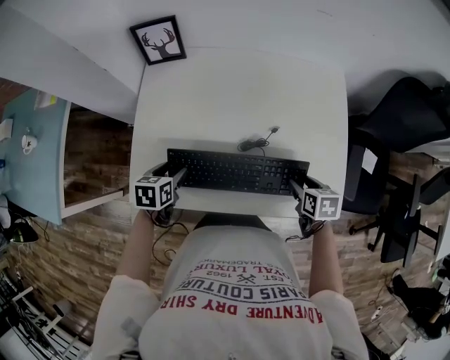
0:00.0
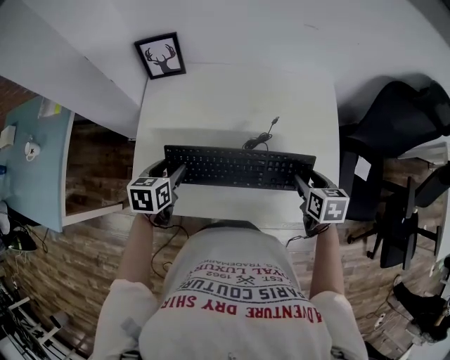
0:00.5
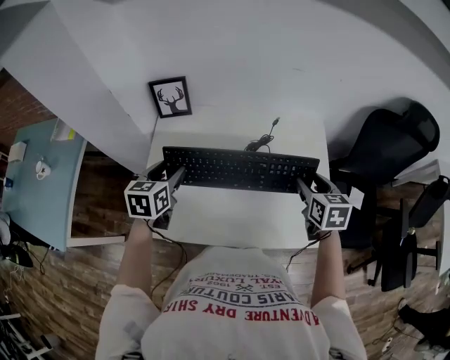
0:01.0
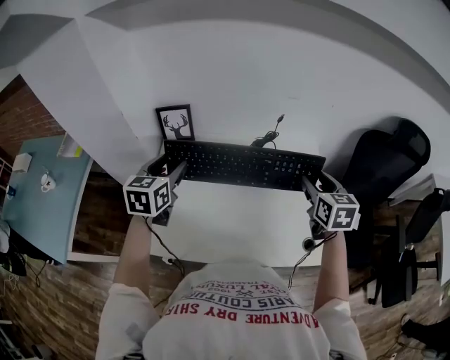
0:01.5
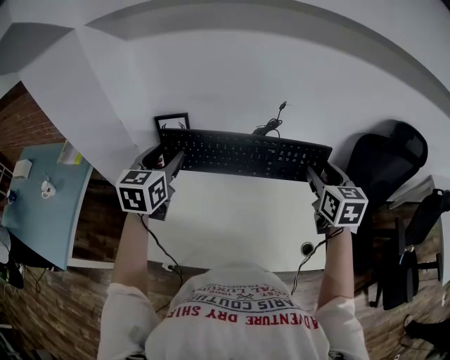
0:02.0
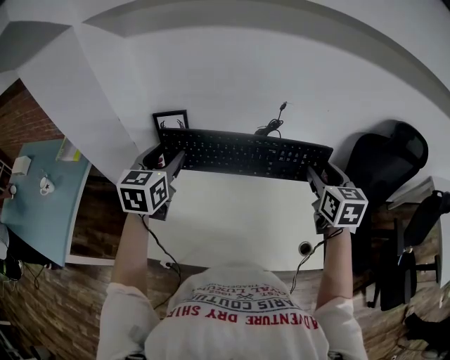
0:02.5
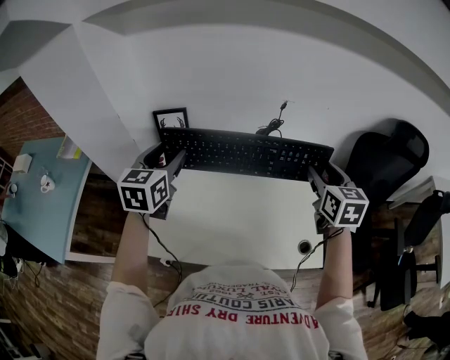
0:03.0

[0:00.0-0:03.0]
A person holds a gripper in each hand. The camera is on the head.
0:00.0 to 0:01.5: Both grippers travel together upward and forward, roughly 30 cm. The left gripper points its fingers roughly 30 degrees further upward; the right gripper tips its fingers upward by about 30 degrees.
0:01.5 to 0:03.0: Both grippers move upward, approximately 5 cm.

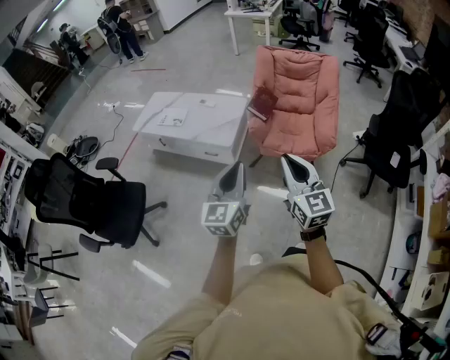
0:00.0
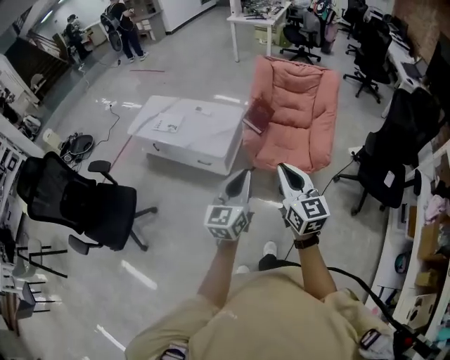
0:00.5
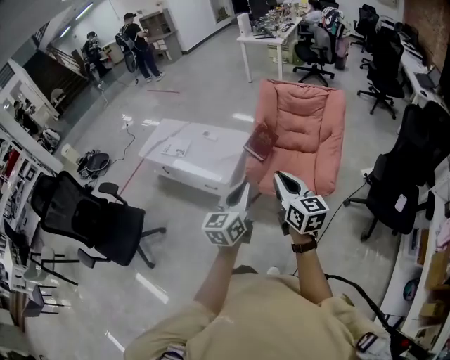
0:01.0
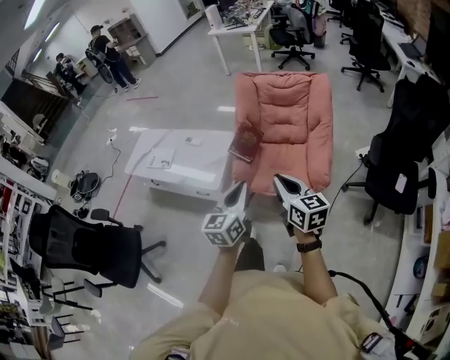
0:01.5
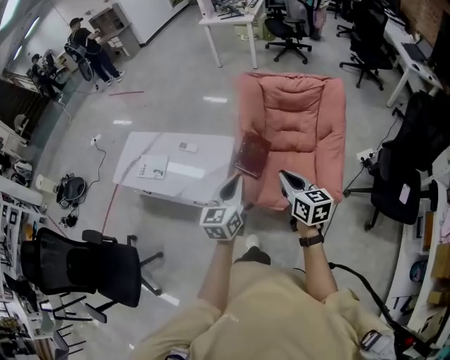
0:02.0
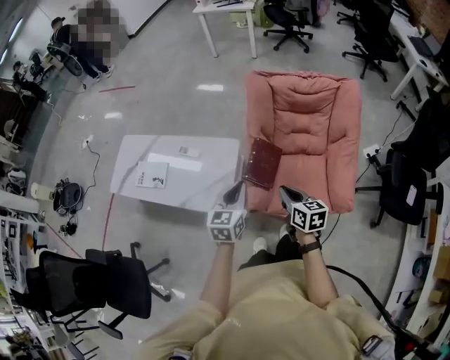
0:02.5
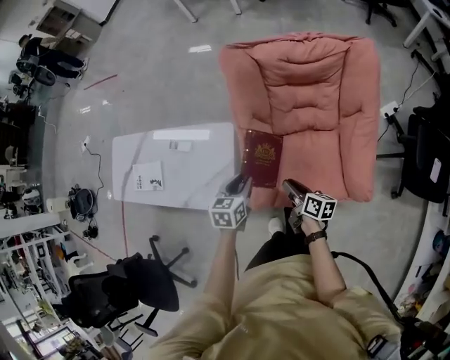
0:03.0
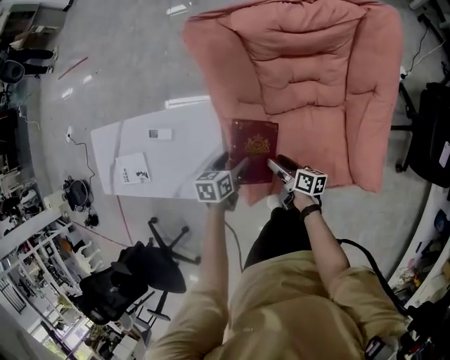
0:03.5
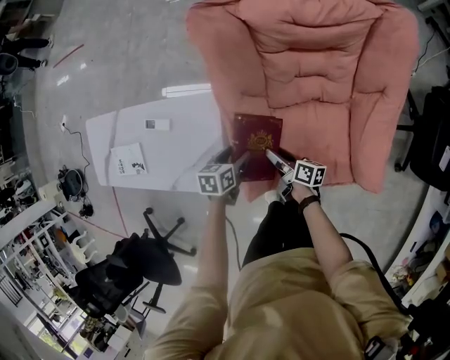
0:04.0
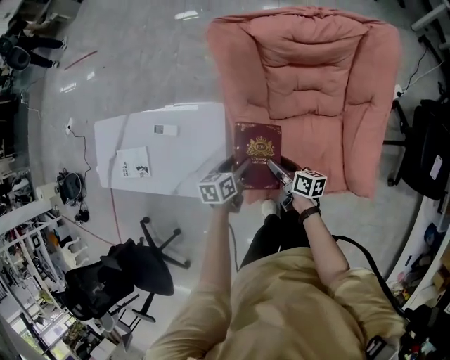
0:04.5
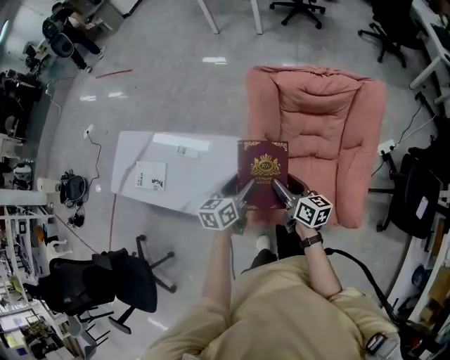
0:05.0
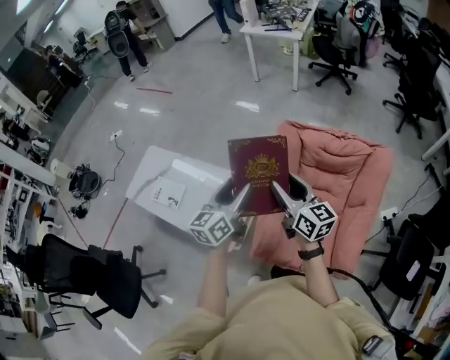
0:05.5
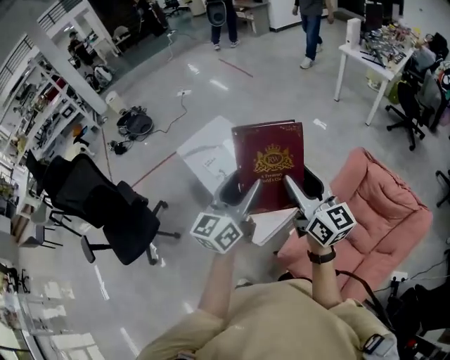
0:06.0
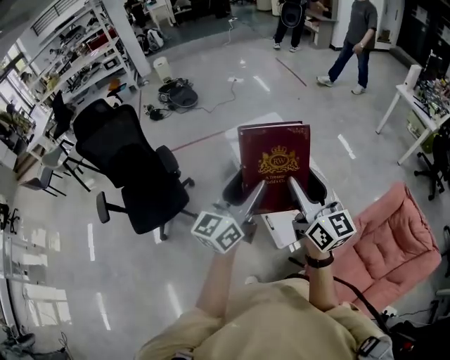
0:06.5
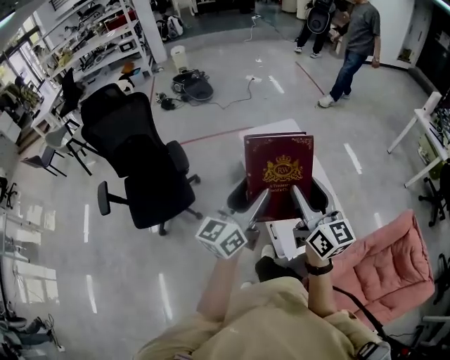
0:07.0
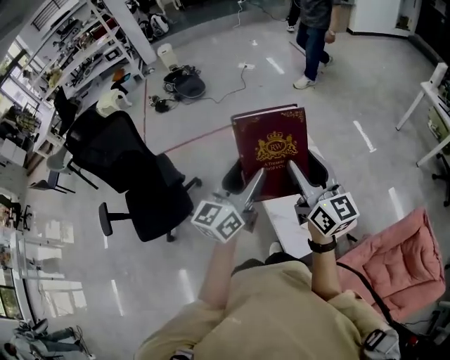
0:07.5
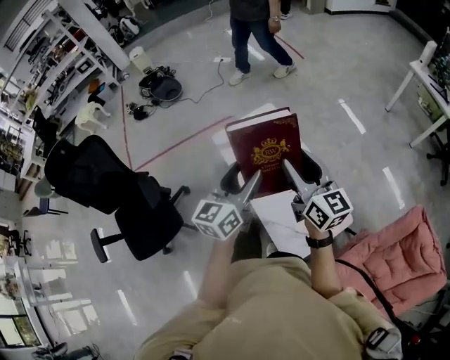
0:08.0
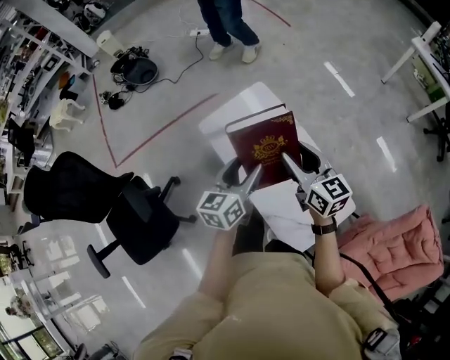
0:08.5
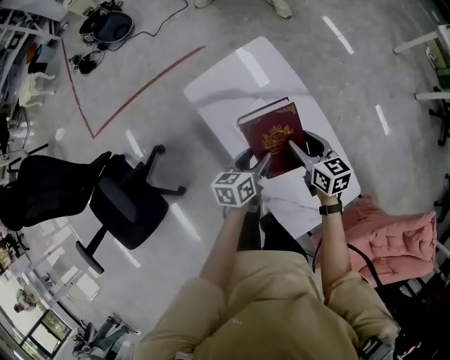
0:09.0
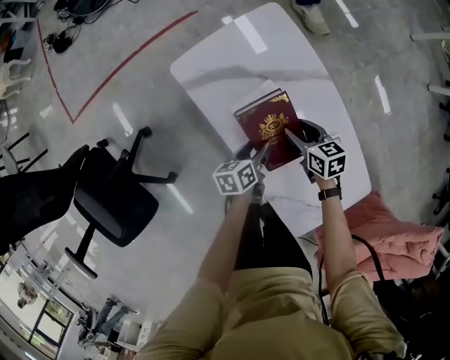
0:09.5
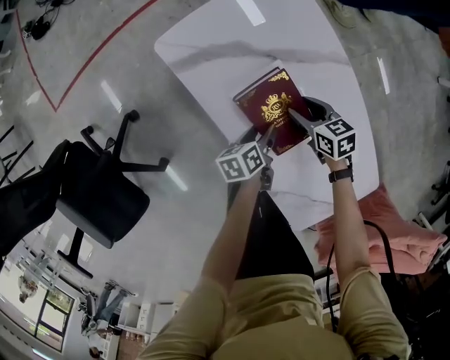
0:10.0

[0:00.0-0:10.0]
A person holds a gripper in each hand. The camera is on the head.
0:00.0 to 0:02.0: The two grippers travel together, forward, some 50 cm. The right gripper changes its angle by some 30 degrees.
0:02.0 to 0:04.0: Both grippers travel together downward and forward, about 50 cm. The left gripper angles its fingers downward, by roughly 40 degrees, and opens its fingers. Meanwhile the right gripper rotates around the line of its fingers by roughly 60 degrees, clockwise from behind, and opens up.
0:04.0 to 0:06.0: Both grippers travel together upward, some 60 cm. The right gripper rolls counterclockwise, seen from behind, by some 60 degrees. The left gripper points its fingers about 60 degrees further upward.
0:06.0 to 0:08.0: Both grippers are carried forward and to the left, some 40 cm.
0:08.0 to 0:10.0: The left gripper moves downward, about 70 cm, and points its fingers about 40 degrees further downward. The right gripper moves downward and forward, about 70 cm, and points its fingers about 50 degrees further downward.

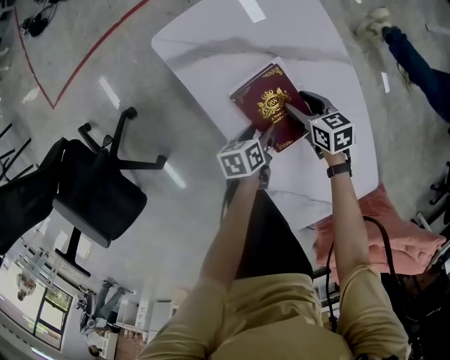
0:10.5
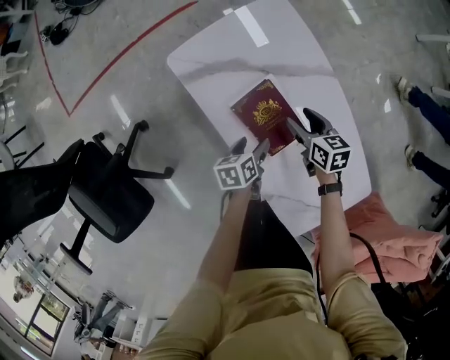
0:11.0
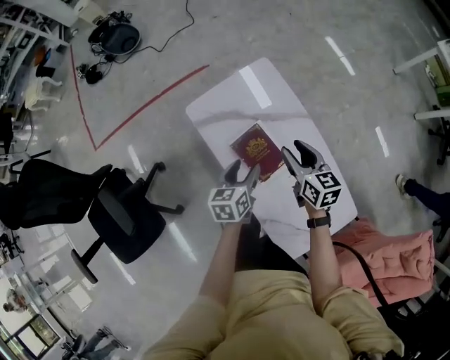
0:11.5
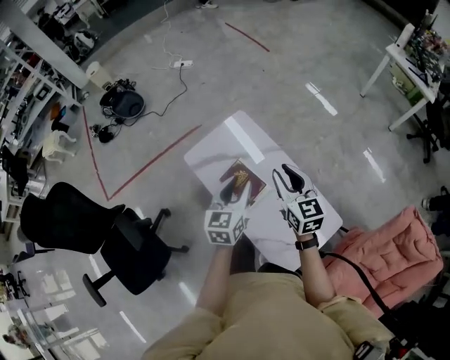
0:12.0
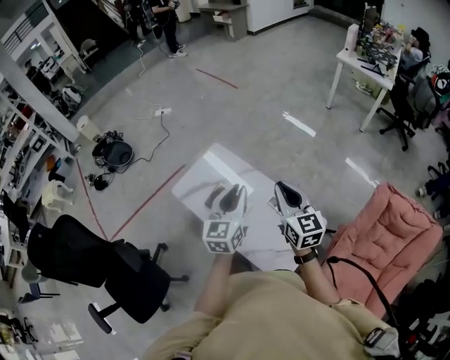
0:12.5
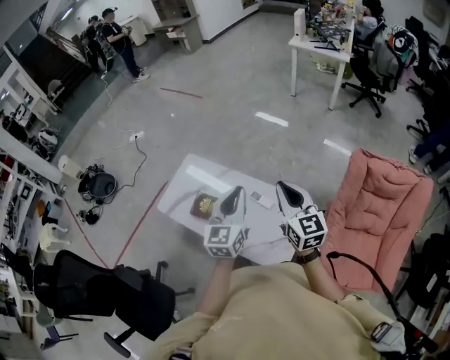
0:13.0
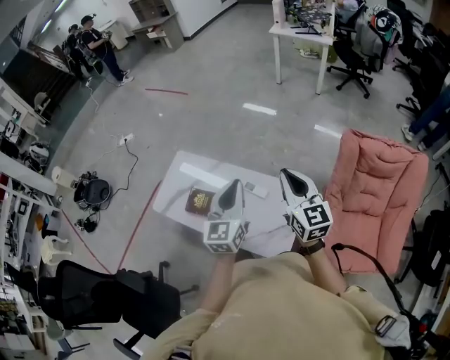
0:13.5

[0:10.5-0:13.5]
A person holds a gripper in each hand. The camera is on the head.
0:10.5 to 0:12.0: Both grippers travel together upward, approximately 50 cm. The left gripper rolls clockwise, seen from behind, by some 50 degrees, and closes. The right gripper angles its fingers upward, by approximately 40 degrees, and closes its fingers.
0:12.0 to 0:13.5: The left gripper moves some 30 cm, swivels approximately 30 degrees, and closes up; the right gripper ends up about 35 cm from where it was, swivels some 30 degrees, and closes up.

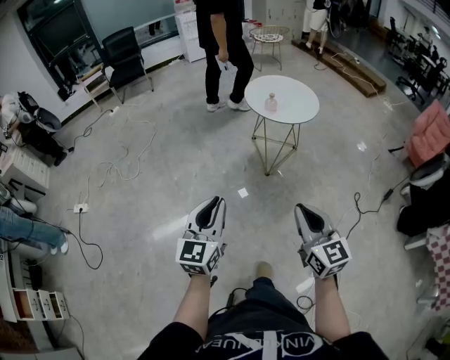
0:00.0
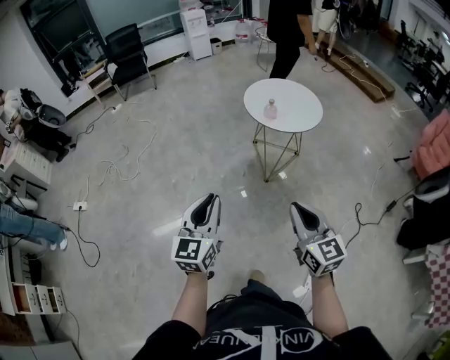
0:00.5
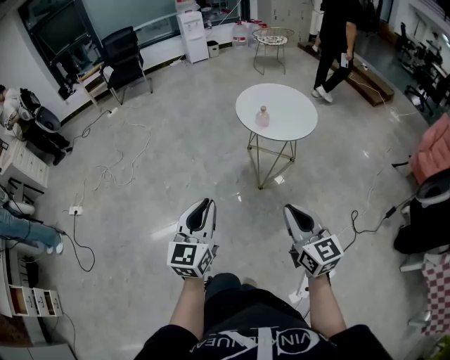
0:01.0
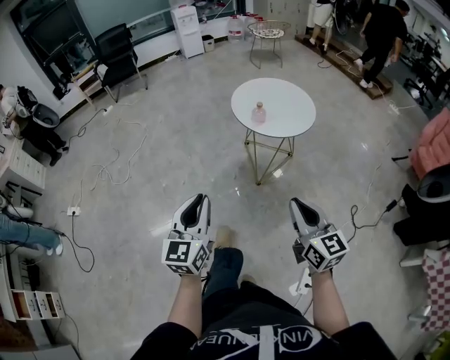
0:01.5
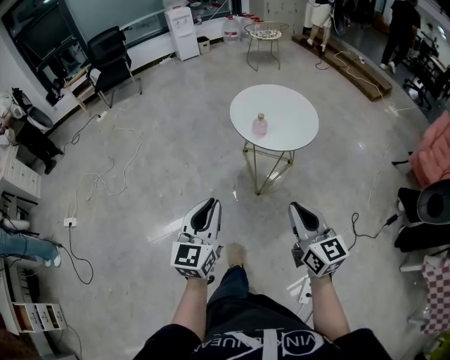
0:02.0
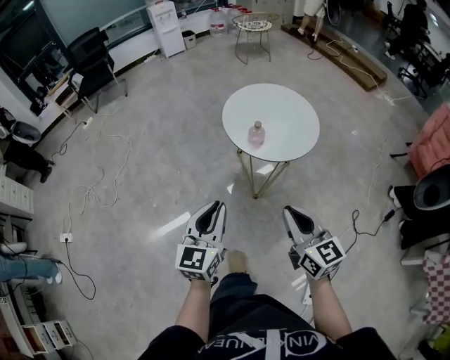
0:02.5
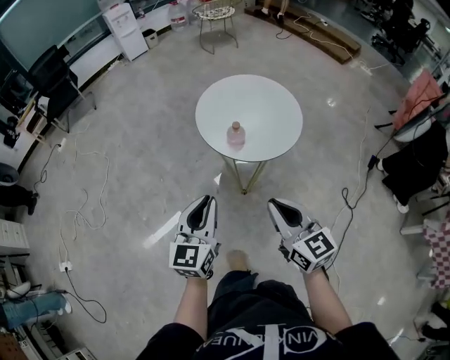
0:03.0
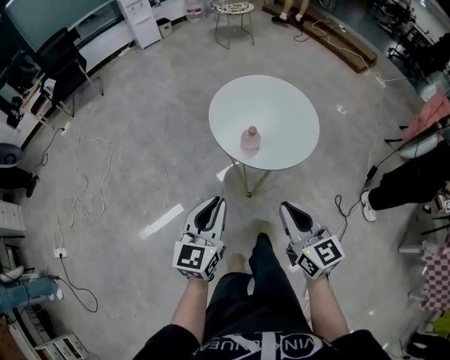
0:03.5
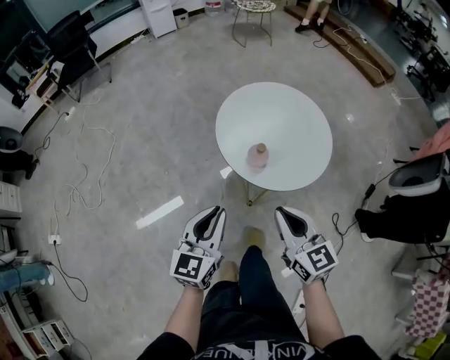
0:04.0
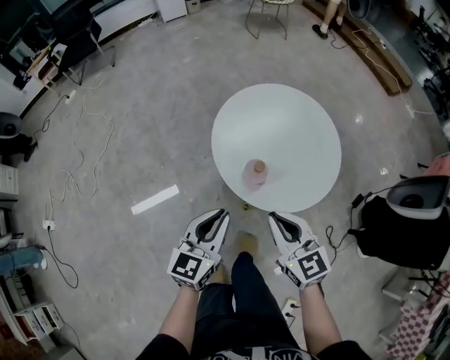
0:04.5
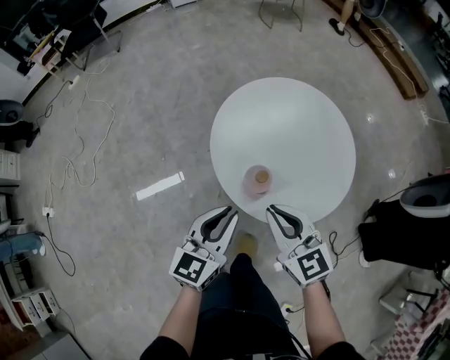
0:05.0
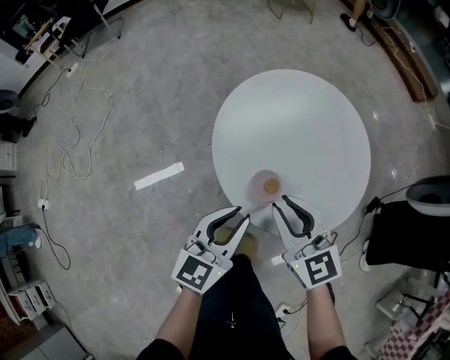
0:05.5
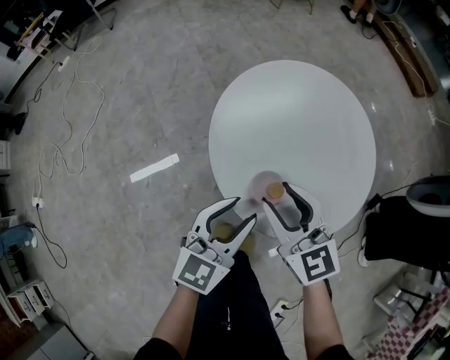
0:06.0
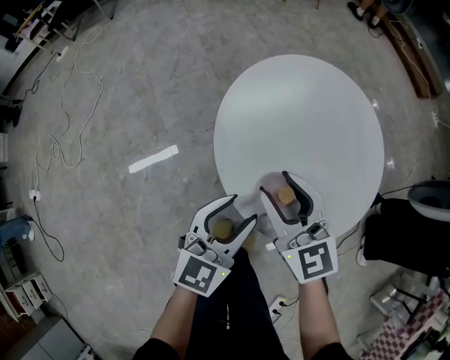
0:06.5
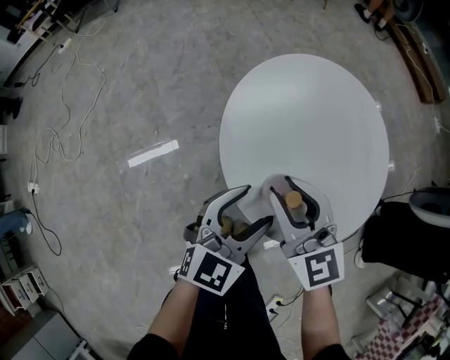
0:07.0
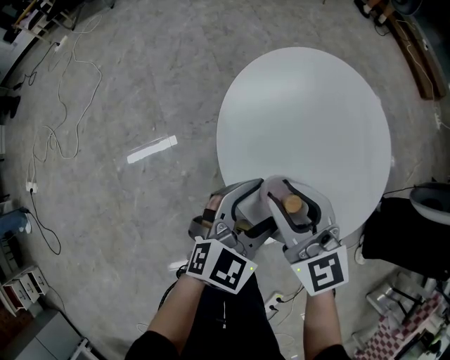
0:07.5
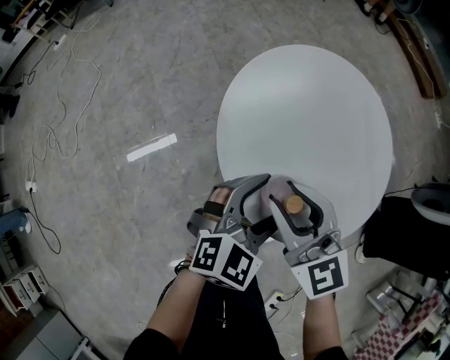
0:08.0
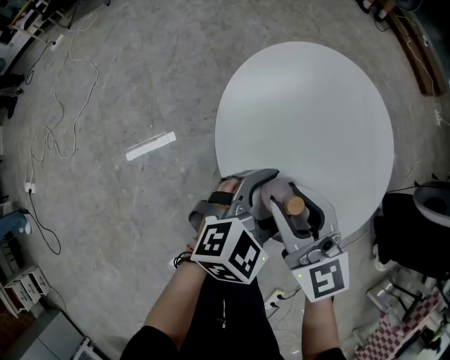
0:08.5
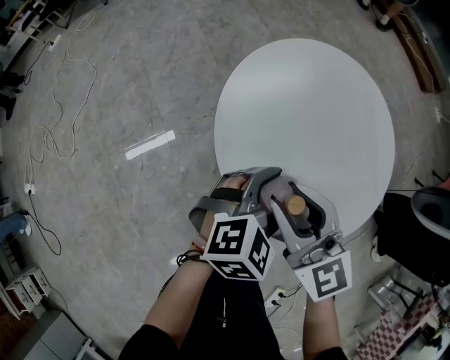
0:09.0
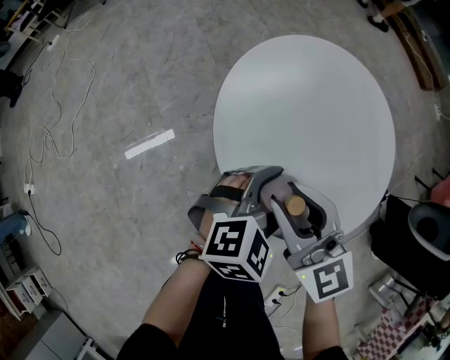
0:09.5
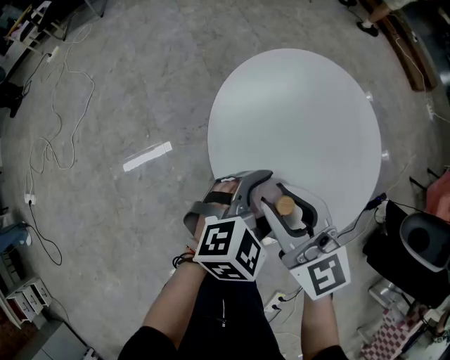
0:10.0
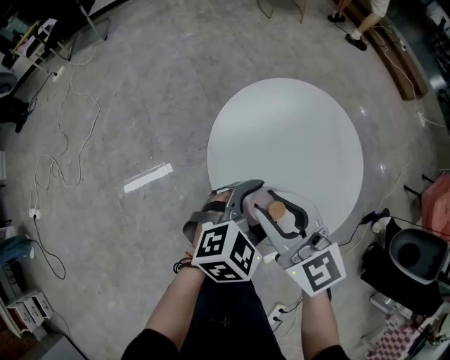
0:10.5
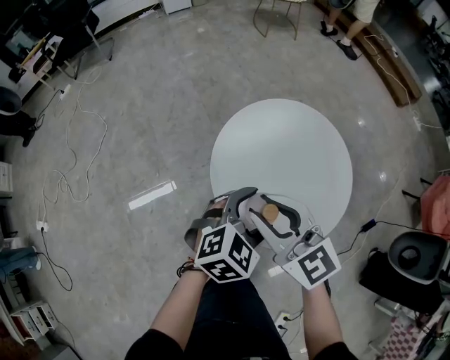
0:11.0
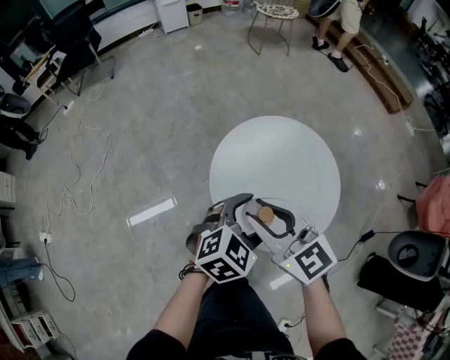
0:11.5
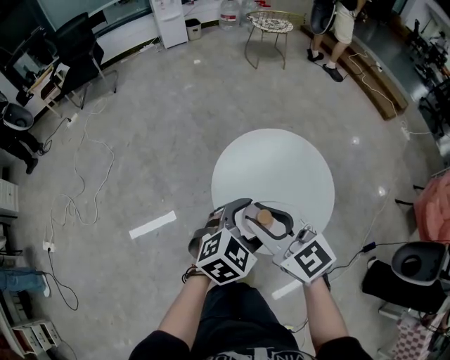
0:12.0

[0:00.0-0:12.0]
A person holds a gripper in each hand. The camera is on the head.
0:00.0 to 0:02.0: The grippers both shift forward and to the right by roughly 25 cm.
0:02.0 to 0:04.0: The grippers both shift forward by roughly 25 cm.
0:04.0 to 0:06.0: The right gripper is displaced forward and downward by about 25 cm, and opens its fingers, while the left gripper travels forward, downward and to the right by approximately 20 cm.
0:06.0 to 0:08.0: The left gripper ends up approximately 5 cm from where it was, turns by about 20 degrees, and opens its fingers.
0:08.0 to 0:10.0: The grippers make only small movements.
0:10.0 to 0:12.0: Both grippers travel together upward, roughly 15 cm.
